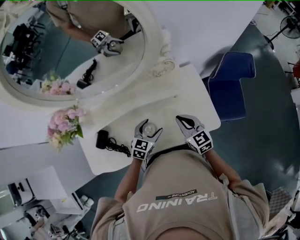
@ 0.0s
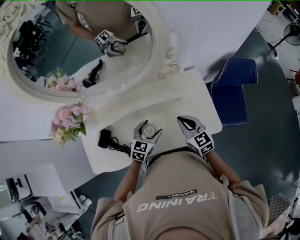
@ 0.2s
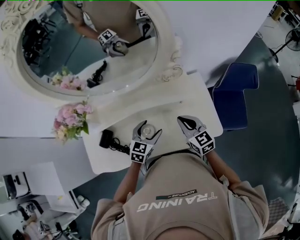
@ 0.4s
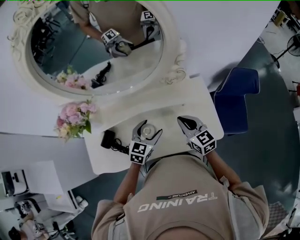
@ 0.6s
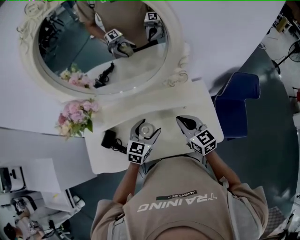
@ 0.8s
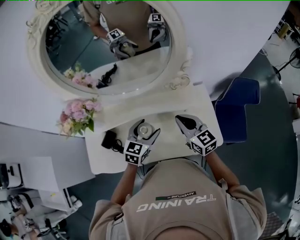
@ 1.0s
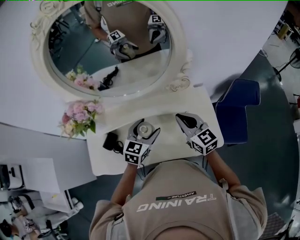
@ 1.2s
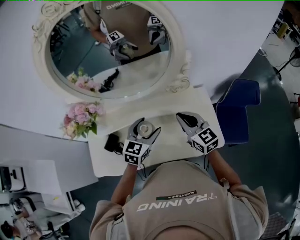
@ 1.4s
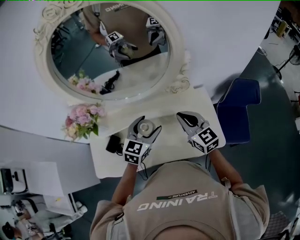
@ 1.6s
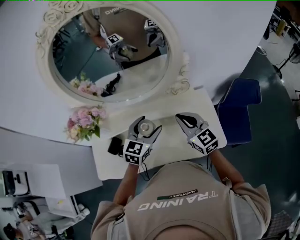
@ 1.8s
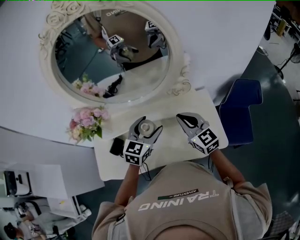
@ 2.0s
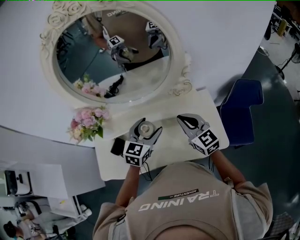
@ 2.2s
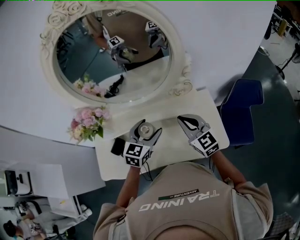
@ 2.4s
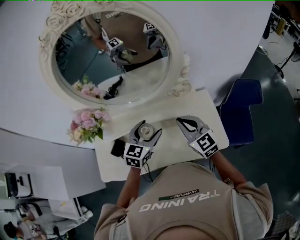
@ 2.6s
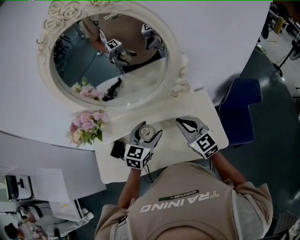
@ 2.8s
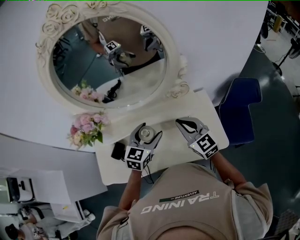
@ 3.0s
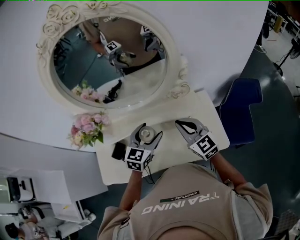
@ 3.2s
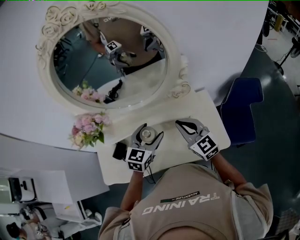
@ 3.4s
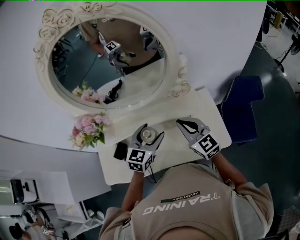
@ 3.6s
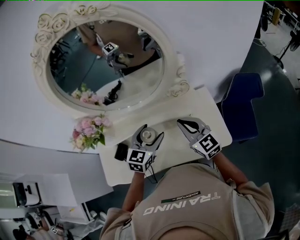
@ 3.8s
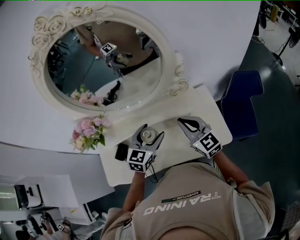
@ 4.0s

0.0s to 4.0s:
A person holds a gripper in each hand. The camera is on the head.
0.0s to 1.4s: Both grippers move upward, about 15 cm.
1.4s to 4.0s: The grippers stay close to where they were, moving slightly.

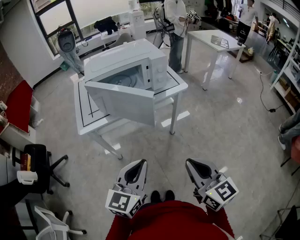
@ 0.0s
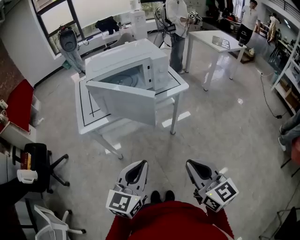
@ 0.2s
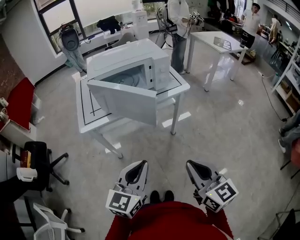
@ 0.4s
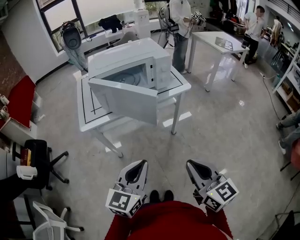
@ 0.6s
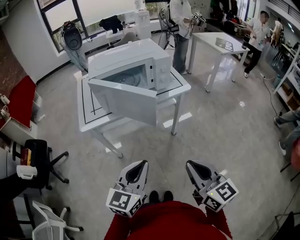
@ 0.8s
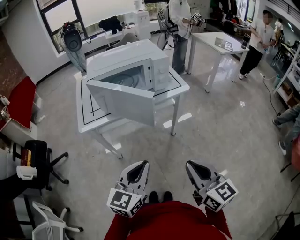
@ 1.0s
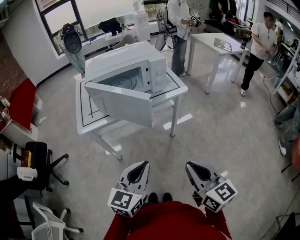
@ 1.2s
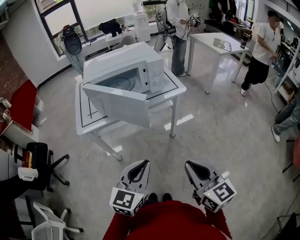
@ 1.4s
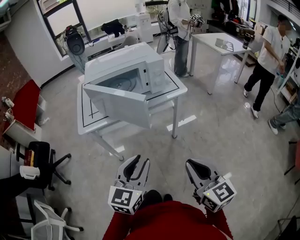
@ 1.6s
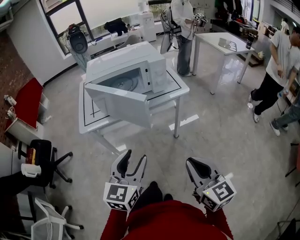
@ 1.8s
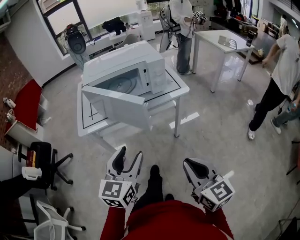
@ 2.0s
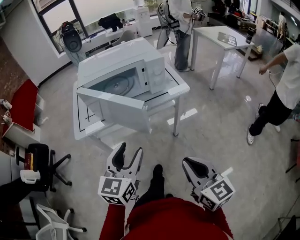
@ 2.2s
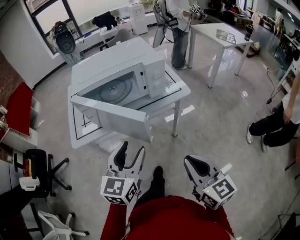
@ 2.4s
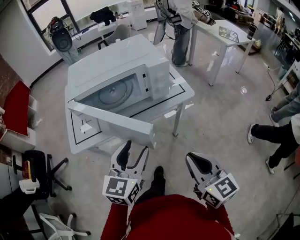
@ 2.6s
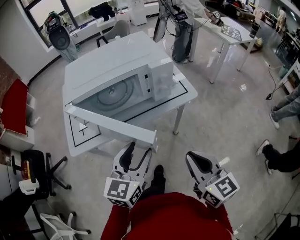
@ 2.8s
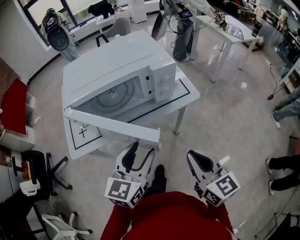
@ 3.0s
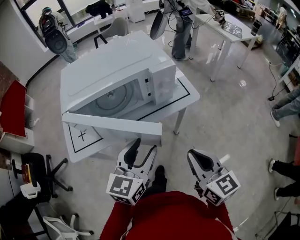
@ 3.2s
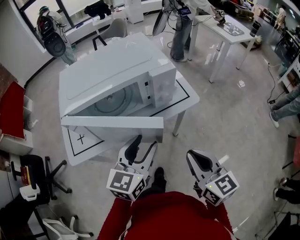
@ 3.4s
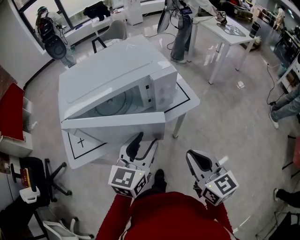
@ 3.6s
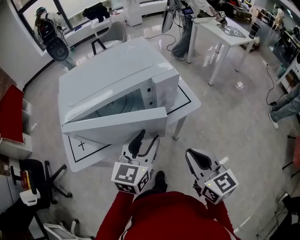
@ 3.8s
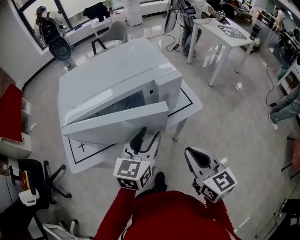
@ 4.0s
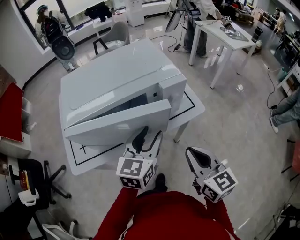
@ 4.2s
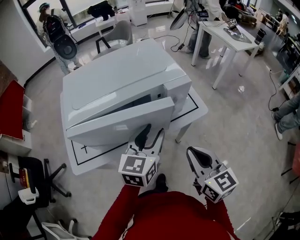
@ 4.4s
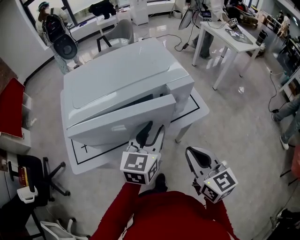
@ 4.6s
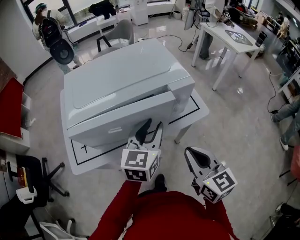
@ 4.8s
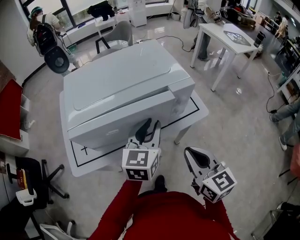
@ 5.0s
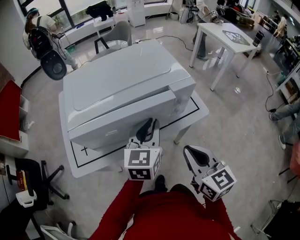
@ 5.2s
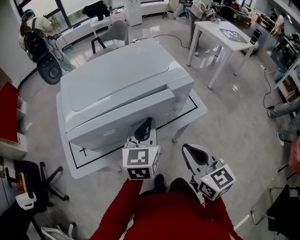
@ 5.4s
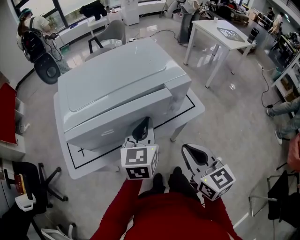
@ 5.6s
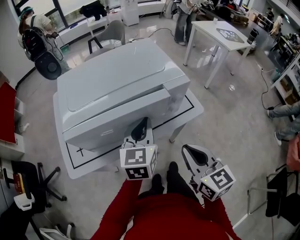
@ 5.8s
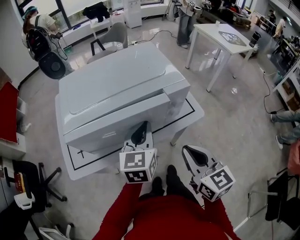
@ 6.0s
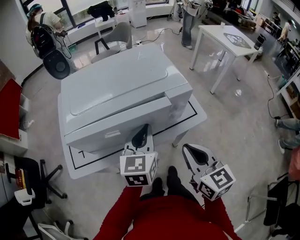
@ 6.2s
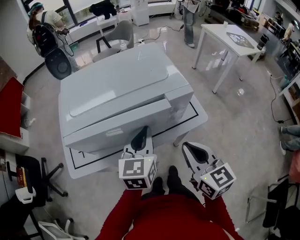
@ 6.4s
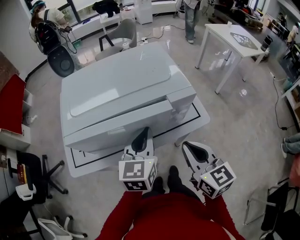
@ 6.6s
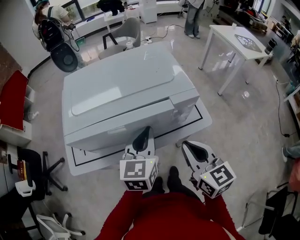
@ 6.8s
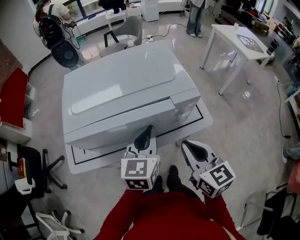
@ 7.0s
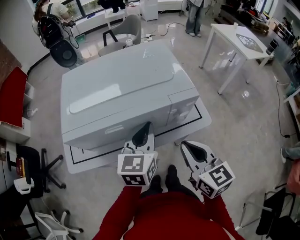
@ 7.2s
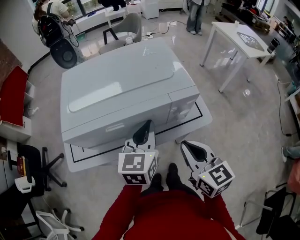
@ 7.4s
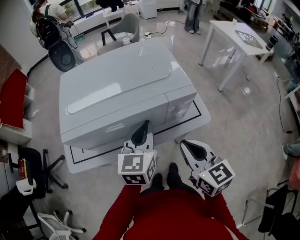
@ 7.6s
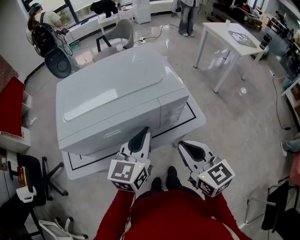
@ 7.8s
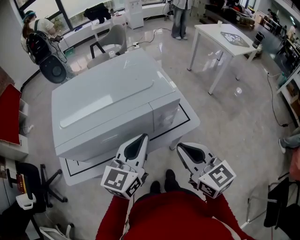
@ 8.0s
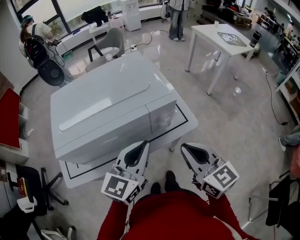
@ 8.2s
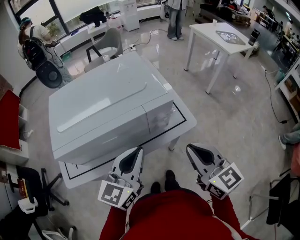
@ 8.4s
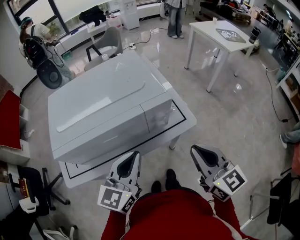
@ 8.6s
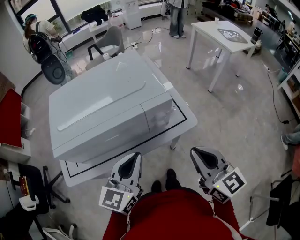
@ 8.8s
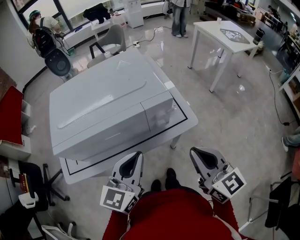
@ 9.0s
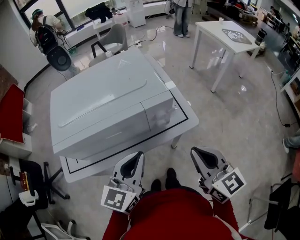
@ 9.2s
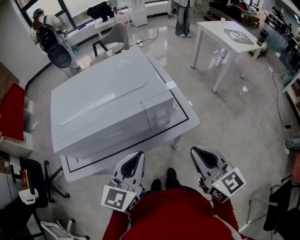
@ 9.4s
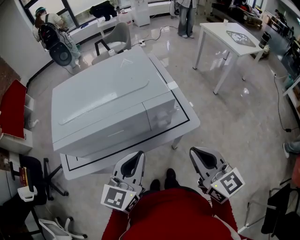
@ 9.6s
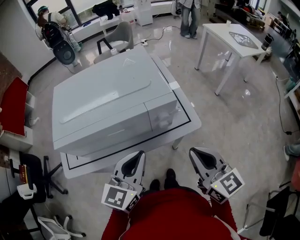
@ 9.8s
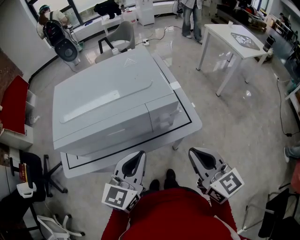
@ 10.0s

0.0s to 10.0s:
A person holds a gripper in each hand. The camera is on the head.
0.0s to 1.4s: The grippers make only small movements.
1.4s to 2.8s: Both grippers travel together forward, some 15 cm. The left gripper opens.
2.8s to 4.2s: Both grippers move forward, roughly 10 cm.
4.2s to 5.8s: The left gripper changes place by about 5 cm, and closes up.
5.8s to 7.2s: The right gripper is displaced forward by about 5 cm.
7.2s to 8.6s: The right gripper goes some 10 cm to the right; the left gripper heads backward, covering roughly 5 cm.
8.6s to 10.0s: The grippers move only a little.

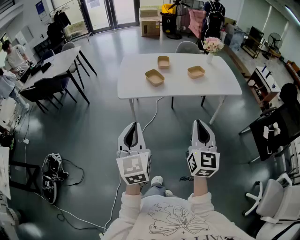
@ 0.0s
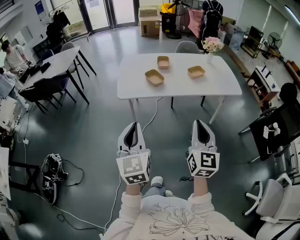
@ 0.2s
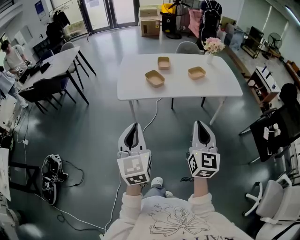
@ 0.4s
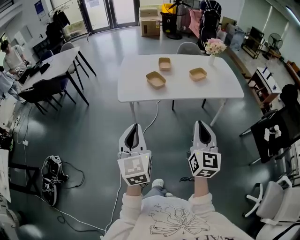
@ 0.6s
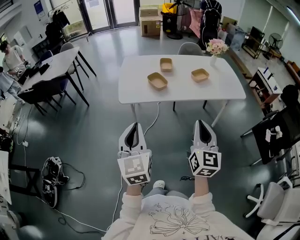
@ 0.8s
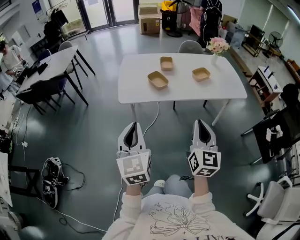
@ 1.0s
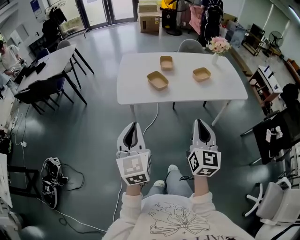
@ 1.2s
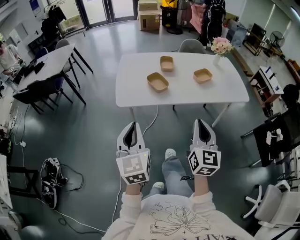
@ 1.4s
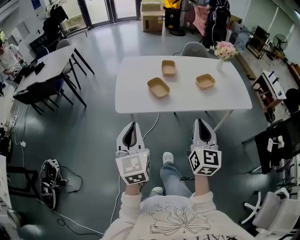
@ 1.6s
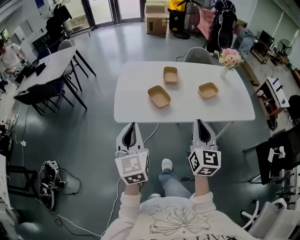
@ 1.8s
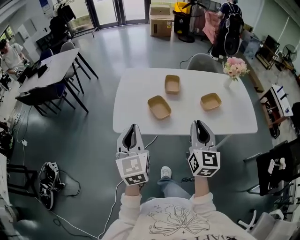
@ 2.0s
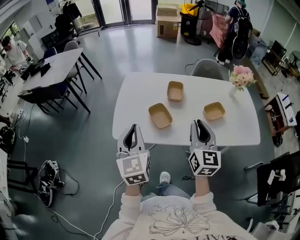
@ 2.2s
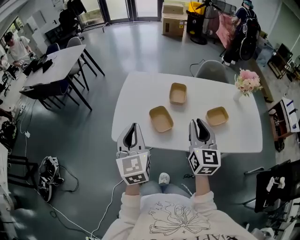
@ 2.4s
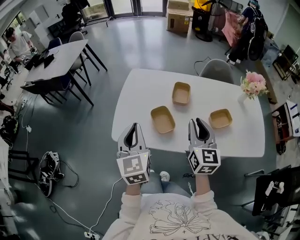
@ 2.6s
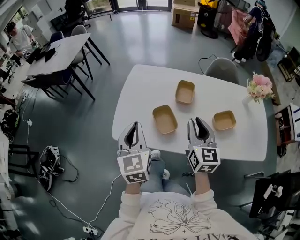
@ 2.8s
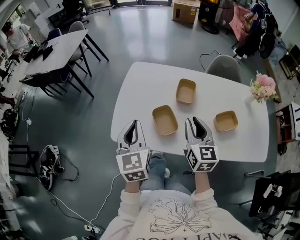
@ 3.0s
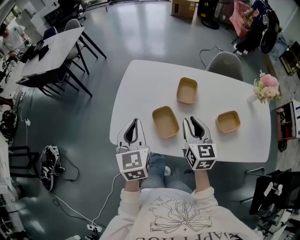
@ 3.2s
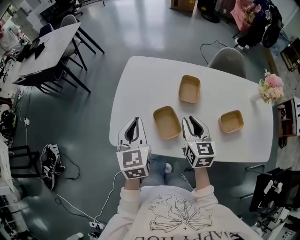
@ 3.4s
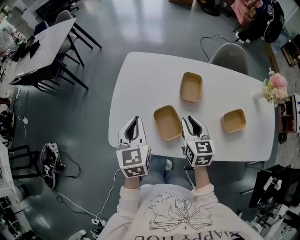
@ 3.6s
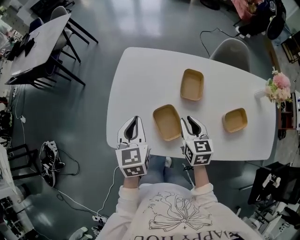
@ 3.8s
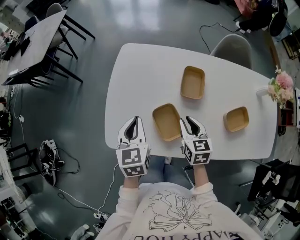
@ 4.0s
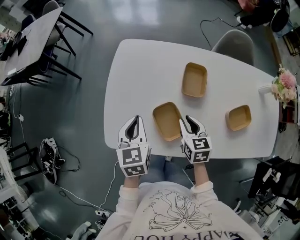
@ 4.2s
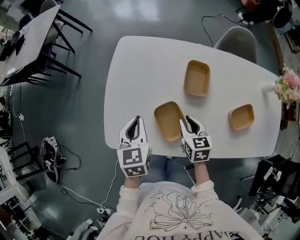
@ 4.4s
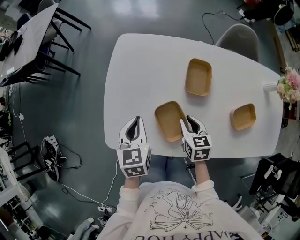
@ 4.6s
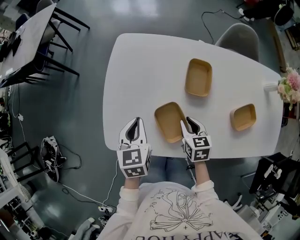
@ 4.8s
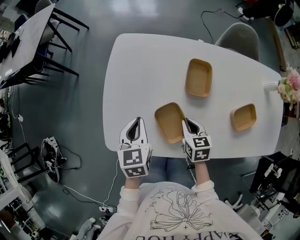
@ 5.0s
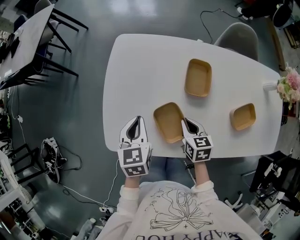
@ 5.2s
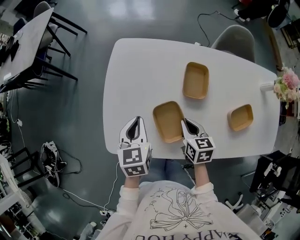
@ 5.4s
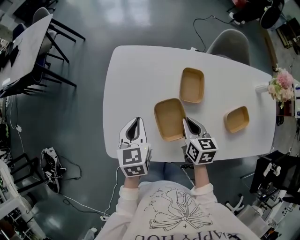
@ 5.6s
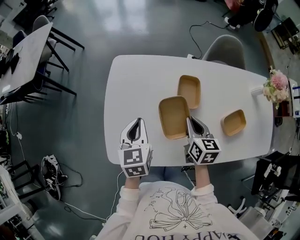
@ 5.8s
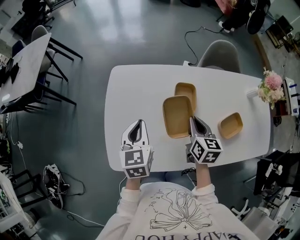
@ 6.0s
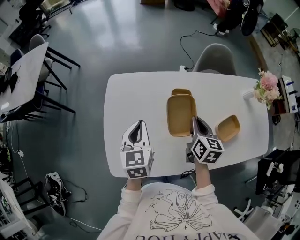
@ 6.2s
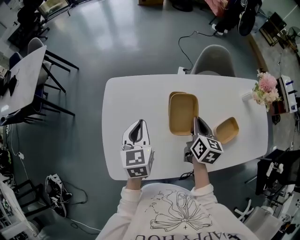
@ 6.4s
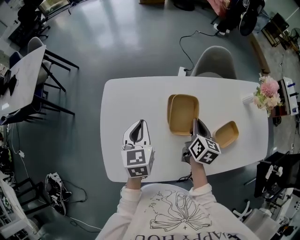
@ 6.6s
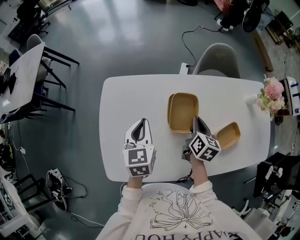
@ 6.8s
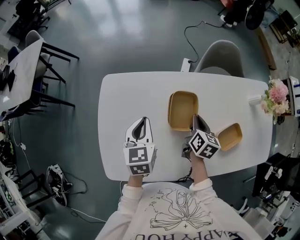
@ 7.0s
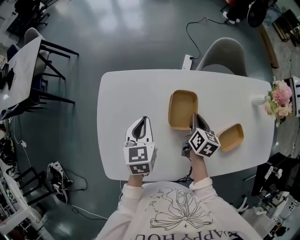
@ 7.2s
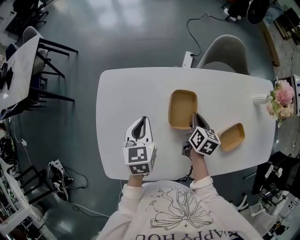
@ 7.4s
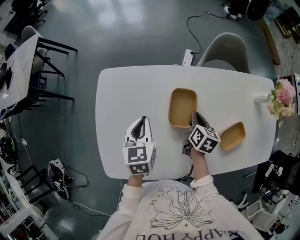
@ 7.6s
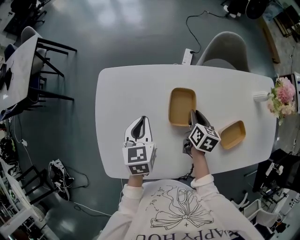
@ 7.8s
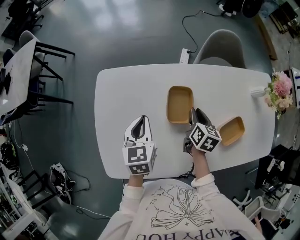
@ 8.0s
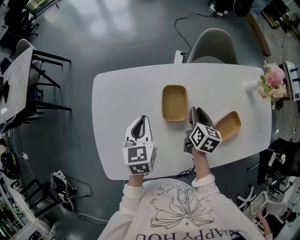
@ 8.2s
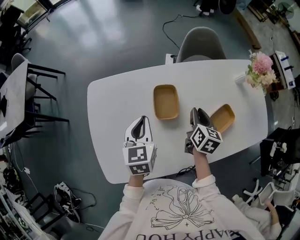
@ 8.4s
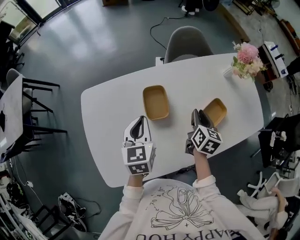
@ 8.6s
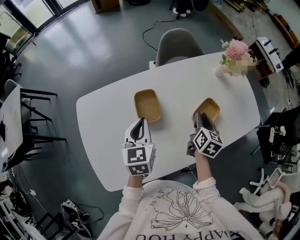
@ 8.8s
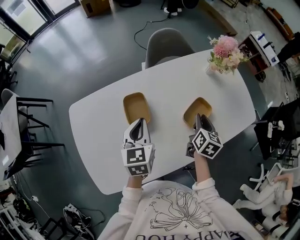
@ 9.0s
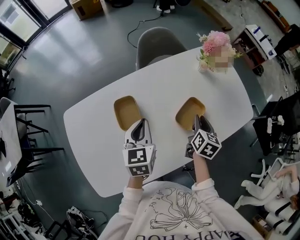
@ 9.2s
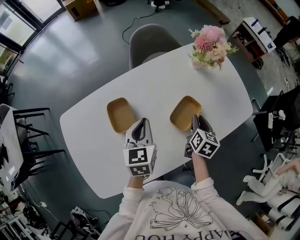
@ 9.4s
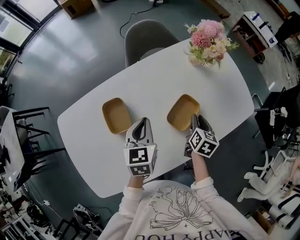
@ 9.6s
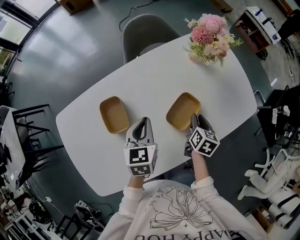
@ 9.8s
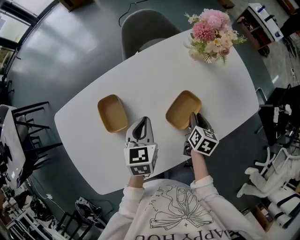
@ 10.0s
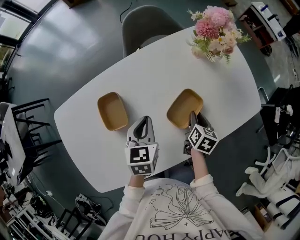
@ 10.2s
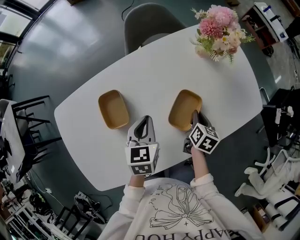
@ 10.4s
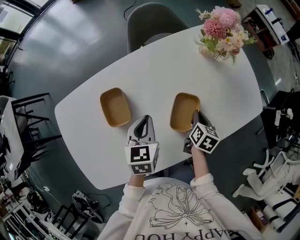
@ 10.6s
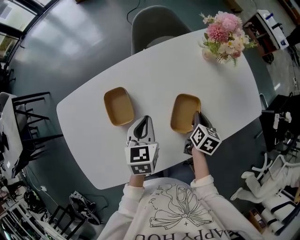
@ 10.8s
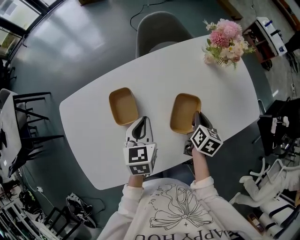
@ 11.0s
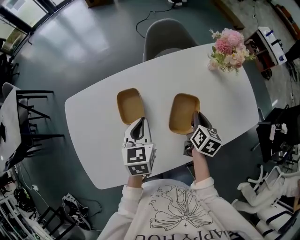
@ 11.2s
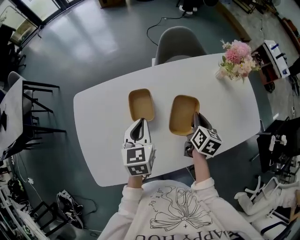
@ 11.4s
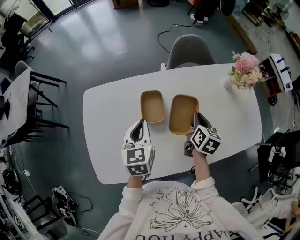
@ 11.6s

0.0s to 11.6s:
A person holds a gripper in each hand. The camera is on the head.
0.0s to 1.4s: Both grippers move forward, about 15 cm.
1.4s to 2.8s: Both grippers move forward, about 35 cm. The right gripper rotates approximately 20 degrees, and opens up.
2.8s to 4.4s: The grippers both shift downward and forward by approximately 25 cm. The right gripper tilts its fingers approximately 30 degrees downward, while the left gripper rotates approximately 20 degrees.
4.4s to 5.8s: The left gripper shifts approximately 5 cm forward, while the right gripper is displaced upward and forward by roughly 10 cm.
5.8s to 7.2s: The right gripper goes some 15 cm forward, to the right and downward, and swivels some 20 degrees, while the left gripper moves forward and to the right, roughly 15 cm.
7.2s to 8.8s: The left gripper shifts approximately 15 cm to the right; the right gripper shifts some 20 cm to the right, backward and upward, and rotates roughly 20 degrees.
8.8s to 10.2s: The right gripper moves to the right and downward, about 20 cm. The left gripper goes about 20 cm to the right, forward and downward.
10.2s to 11.6s: Both grippers move to the left and upward, some 20 cm. The right gripper turns by approximately 20 degrees, and closes its fingers, while the left gripper swivels approximately 20 degrees.
